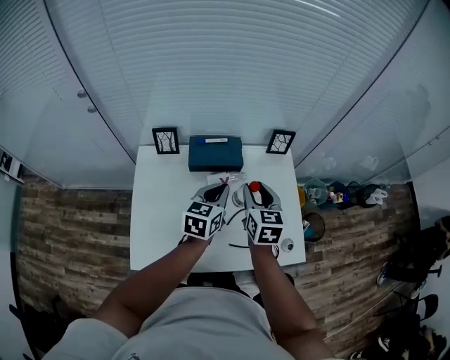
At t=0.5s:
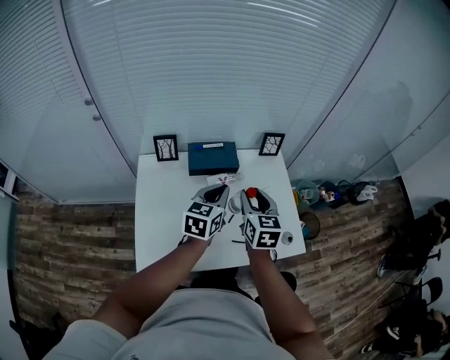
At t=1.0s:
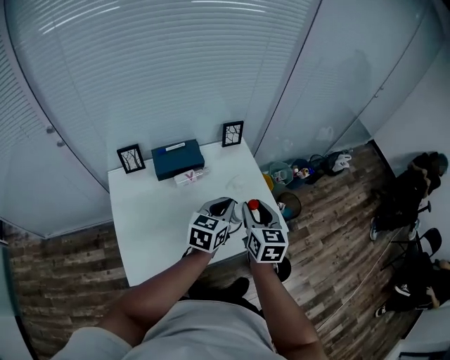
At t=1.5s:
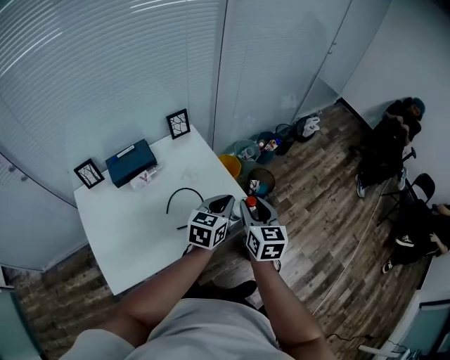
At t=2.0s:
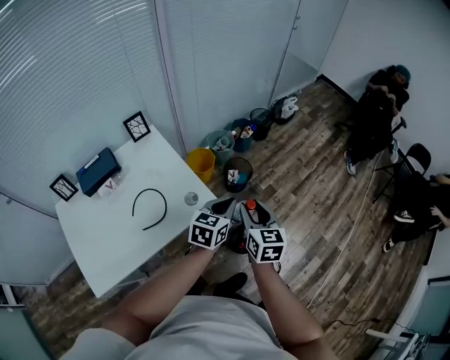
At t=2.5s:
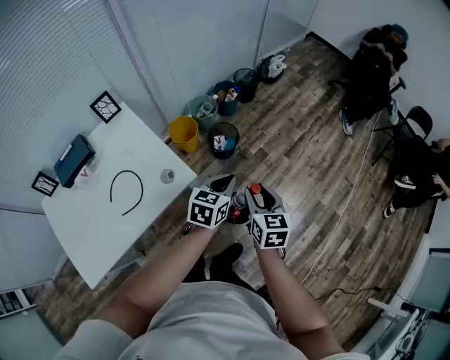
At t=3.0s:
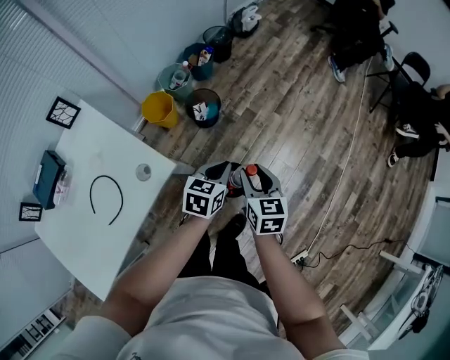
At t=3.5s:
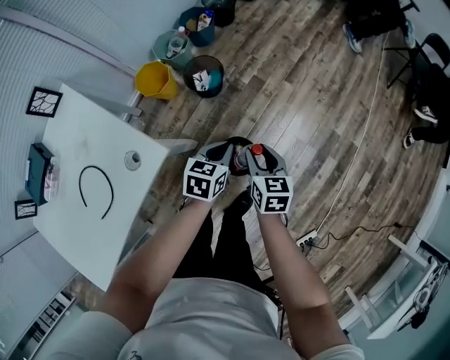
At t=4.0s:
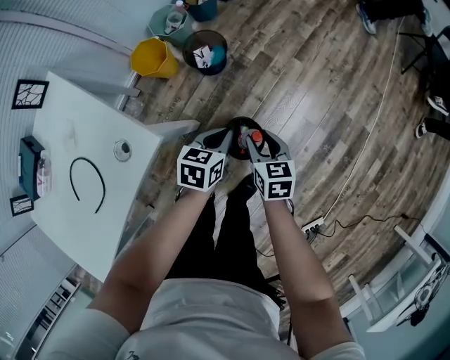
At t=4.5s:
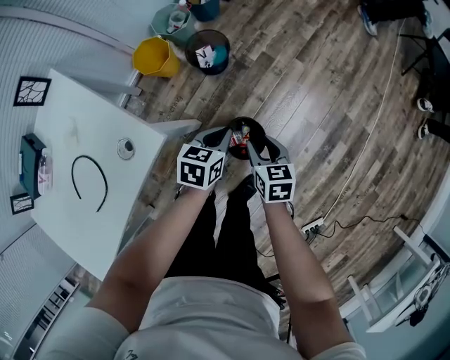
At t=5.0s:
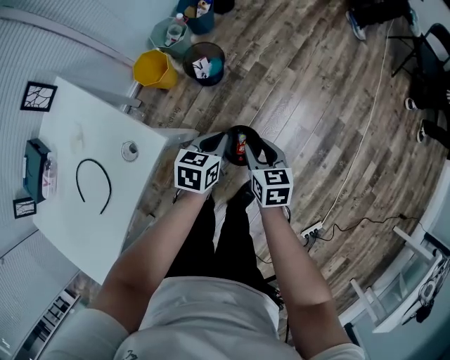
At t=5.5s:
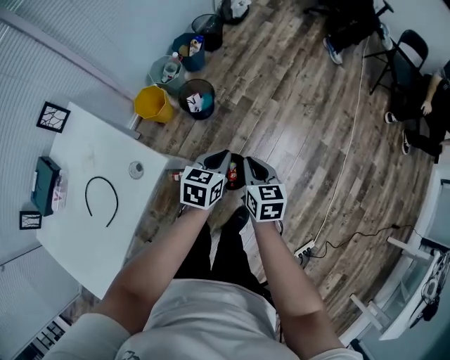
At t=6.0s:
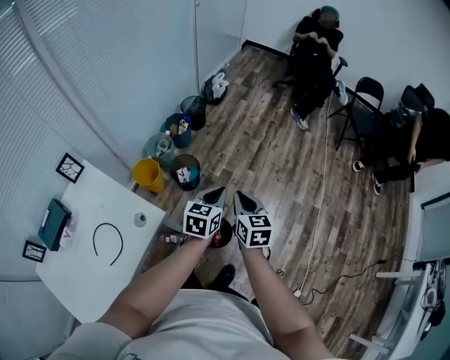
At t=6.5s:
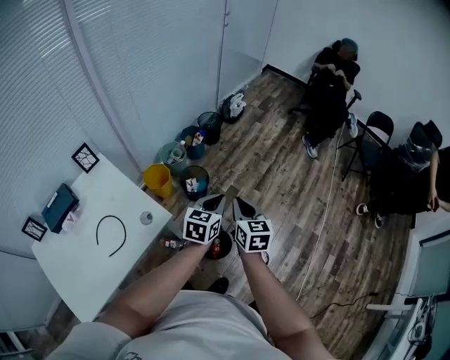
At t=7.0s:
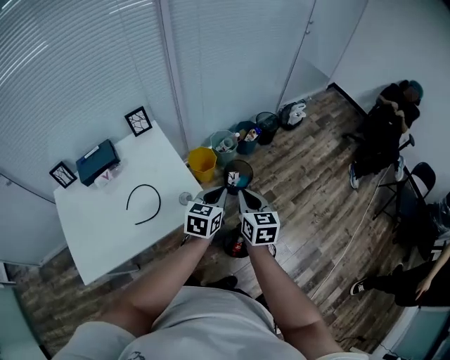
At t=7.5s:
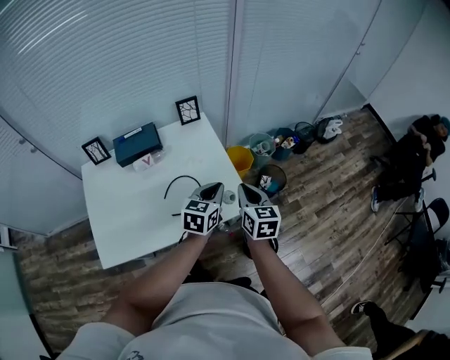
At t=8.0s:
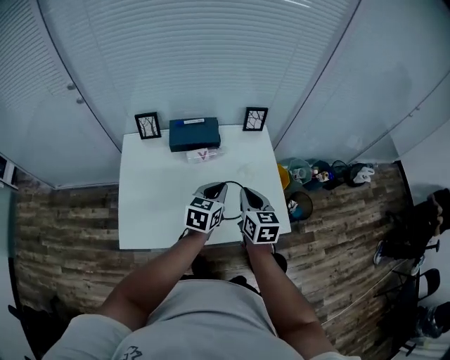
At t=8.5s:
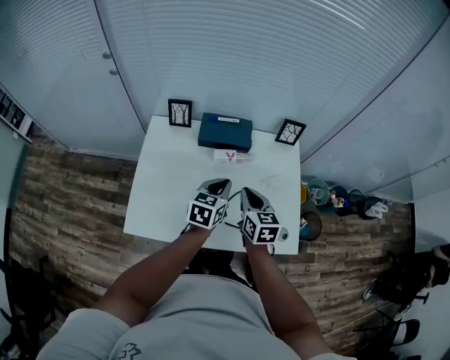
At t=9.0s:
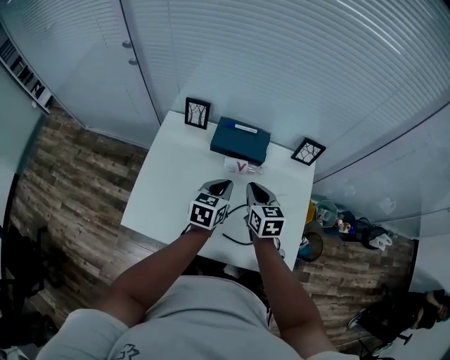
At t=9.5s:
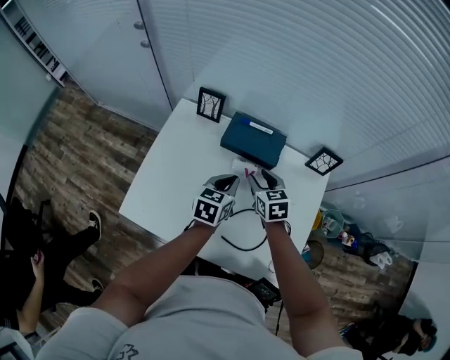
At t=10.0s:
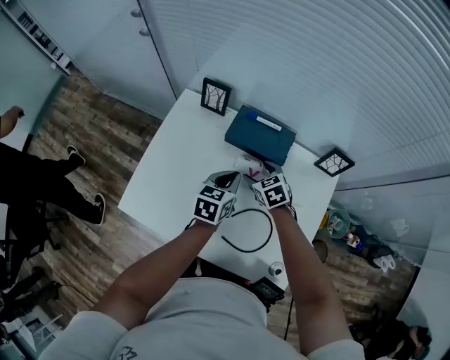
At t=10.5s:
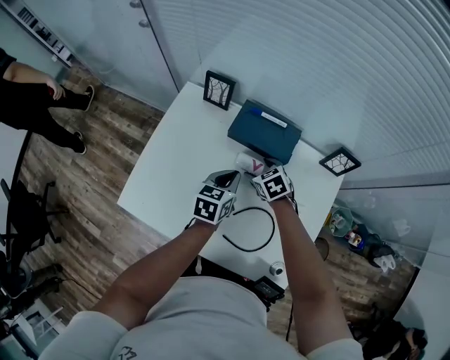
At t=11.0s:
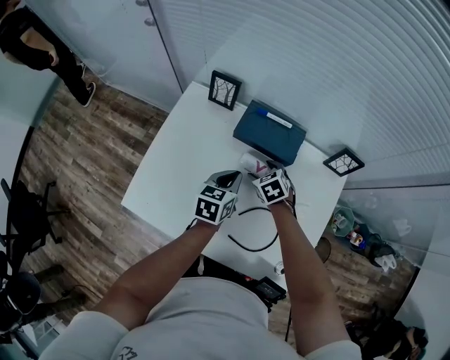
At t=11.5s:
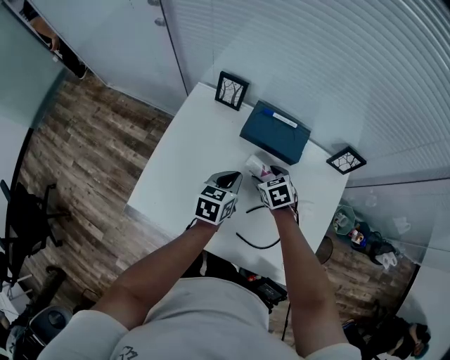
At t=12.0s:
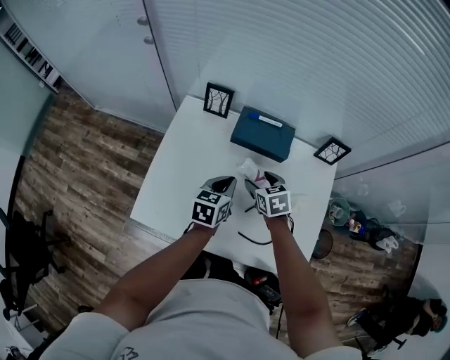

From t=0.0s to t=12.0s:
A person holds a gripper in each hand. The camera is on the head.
From t=0.0s to t=2.0s: Both grippers are carried some 50 cm. The right gripper changes its angle by about 30 degrees, while the left gripper turns by roughly 40 degrees.
From t=2.0s to t=4.0s: Both grippers travel together downward, some 35 cm. The left gripper swivels roughly 30 degrees. Meanwhile the right gripper swivels some 20 degrees.
From t=4.0s to t=6.0s: The two grippers go some 30 cm upward. The left gripper swivels roughly 20 degrees, while the right gripper turns by roughly 20 degrees, and closes up.
From t=6.0s to t=8.0s: The two grippers travel together, approximately 60 cm. The right gripper turns by roughly 50 degrees; the left gripper swivels about 50 degrees.
From t=8.0s to t=10.0s: The right gripper shifts by roughly 30 cm, changes its angle by some 60 degrees, and opens up; the left gripper changes place by approximately 20 cm, and swivels approximately 30 degrees.
From t=10.0s to t=12.0s: The right gripper is displaced backward by about 5 cm. The left gripper travels to the left by about 5 cm.

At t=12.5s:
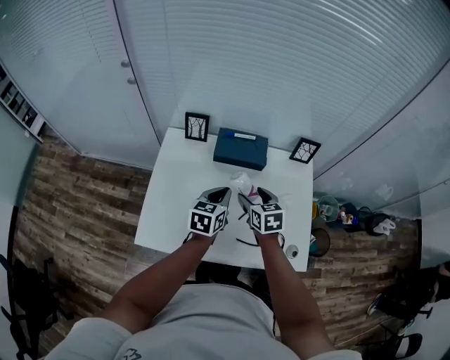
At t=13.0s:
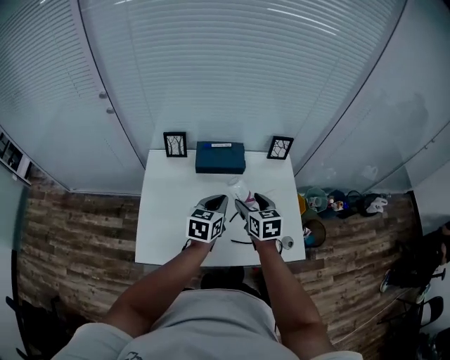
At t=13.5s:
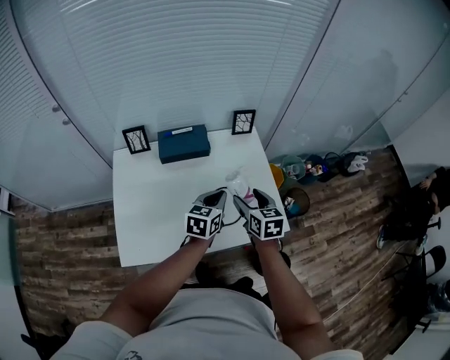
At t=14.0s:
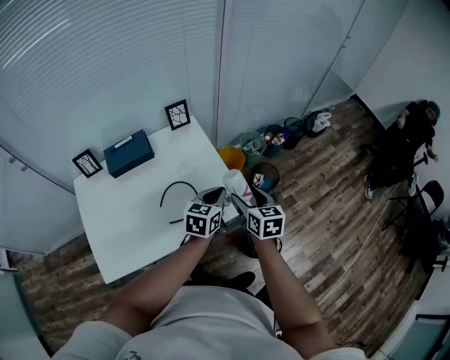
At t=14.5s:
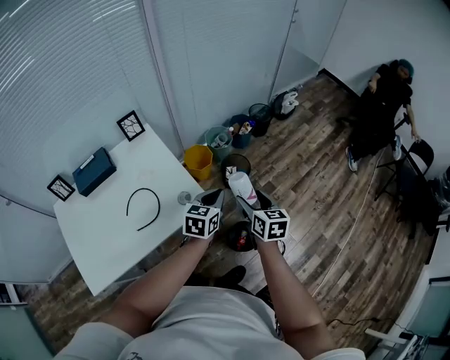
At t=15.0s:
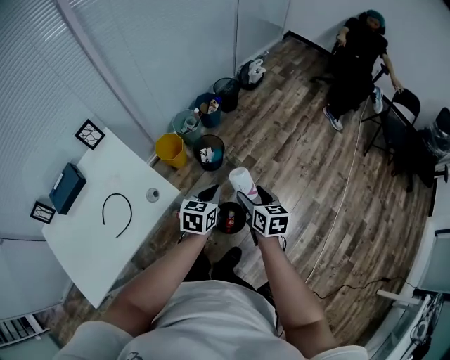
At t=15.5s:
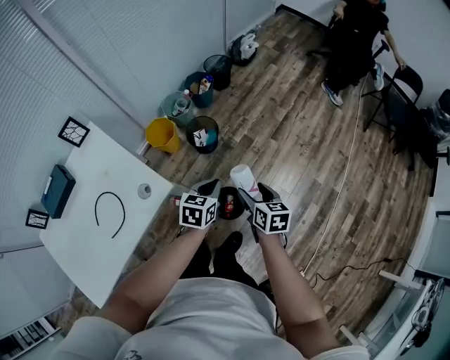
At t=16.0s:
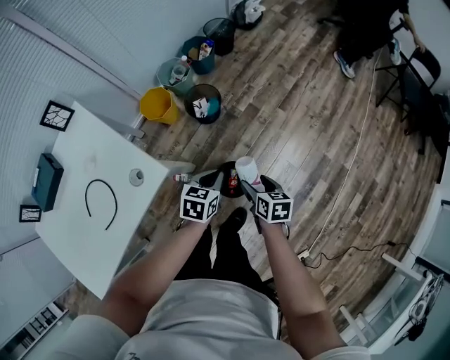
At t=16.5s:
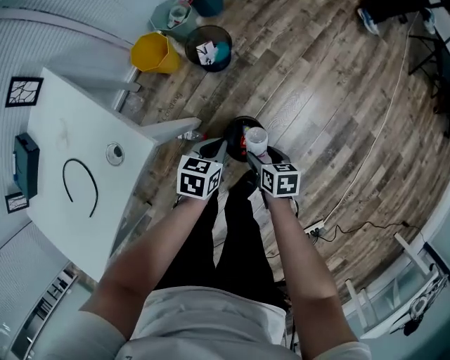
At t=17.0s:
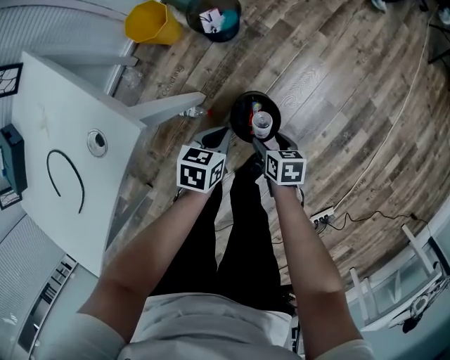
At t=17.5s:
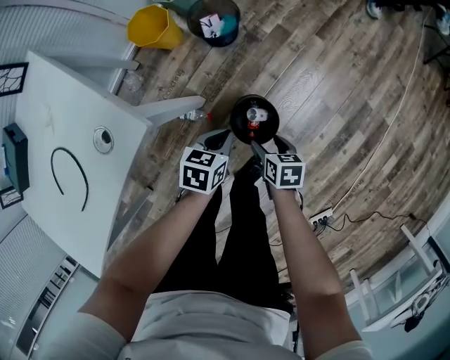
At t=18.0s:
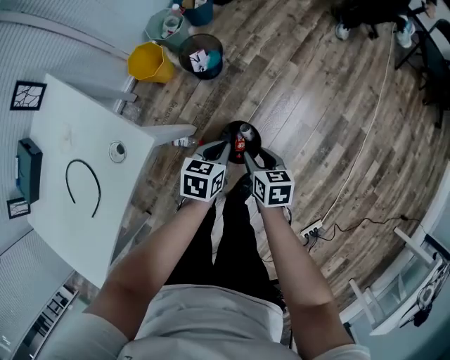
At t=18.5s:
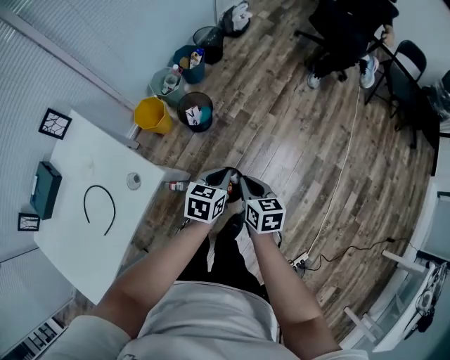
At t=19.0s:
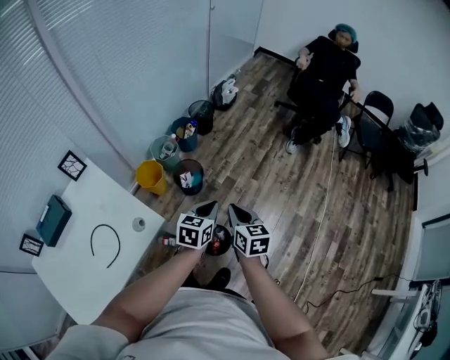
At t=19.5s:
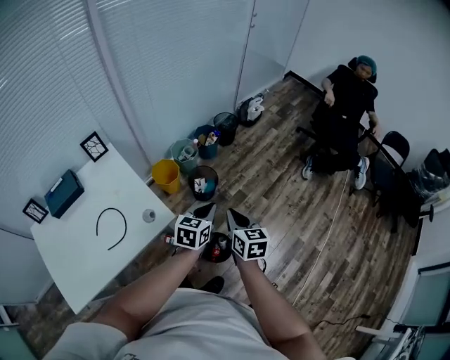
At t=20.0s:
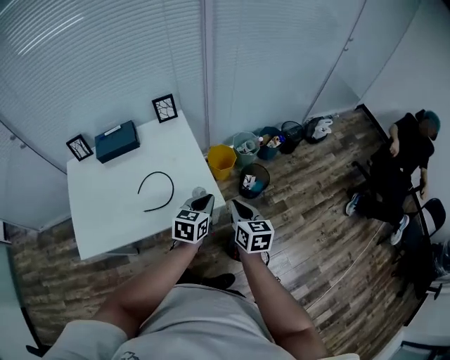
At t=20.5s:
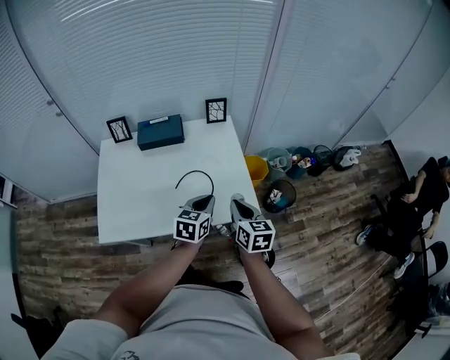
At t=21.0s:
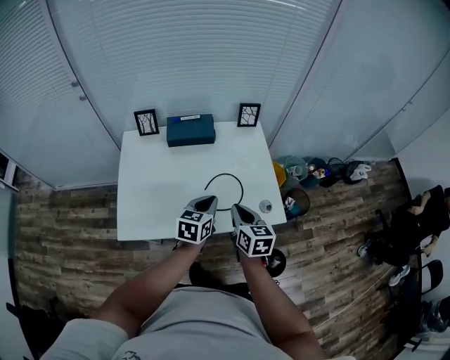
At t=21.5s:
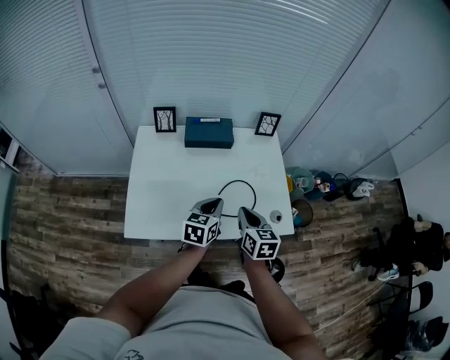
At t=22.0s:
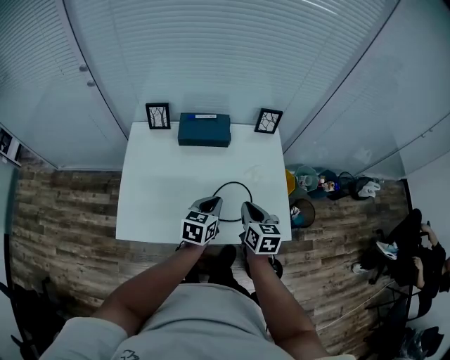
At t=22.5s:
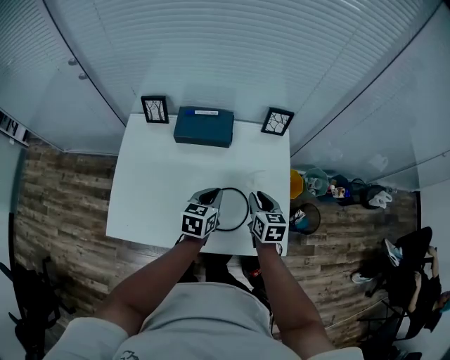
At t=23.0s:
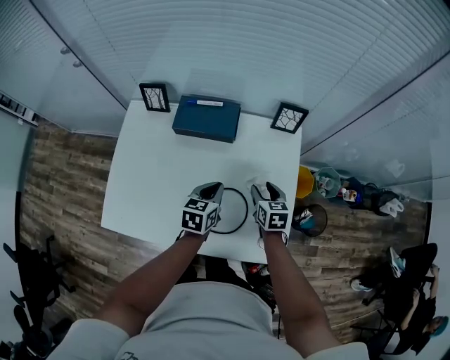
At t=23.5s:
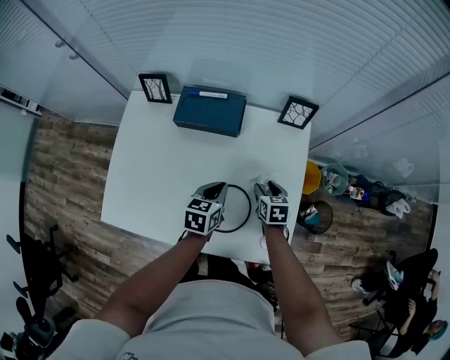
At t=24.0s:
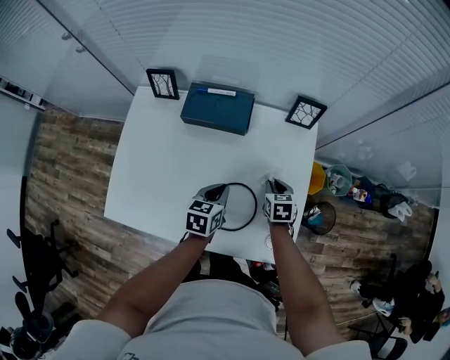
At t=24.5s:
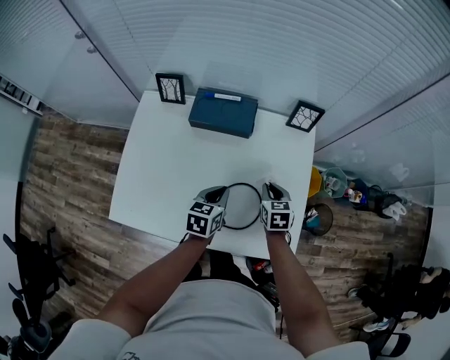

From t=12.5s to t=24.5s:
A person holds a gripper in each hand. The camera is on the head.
From t=12.5s to t=14.5s: Both grippers are carried some 60 cm. The right gripper changes its angle by approximately 50 degrees. The left gripper swivels roughly 50 degrees.
From t=14.5s to t=16.5s: The grippers both shift downward by some 35 cm. The left gripper turns by approximately 30 degrees. Meanwhile the right gripper swivels approximately 30 degrees.
From t=16.5s to t=18.5s: The left gripper shifts roughly 20 cm upward and to the right; the right gripper travels upward by roughly 25 cm, turns by some 20 degrees, and closes up.
From t=18.5s to t=20.5s: The left gripper ends up approximately 40 cm from where it was, and turns by approximately 50 degrees, while the right gripper changes place by approximately 40 cm, and rotates approximately 50 degrees.
From t=20.5s to t=22.5s: The right gripper shifts roughly 25 cm forward, downward and to the left. Meanwhile the left gripper is displaced forward, to the left and downward by approximately 20 cm.
From t=22.5s to t=24.5s: Both grippers travel together downward, roughly 5 cm. The right gripper opens, then closes again.

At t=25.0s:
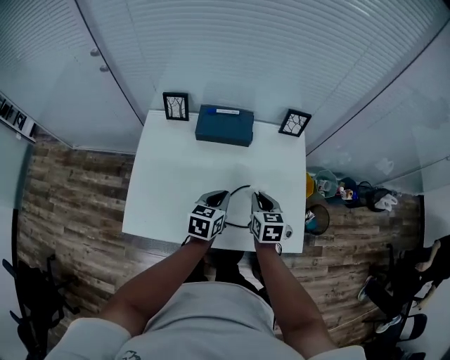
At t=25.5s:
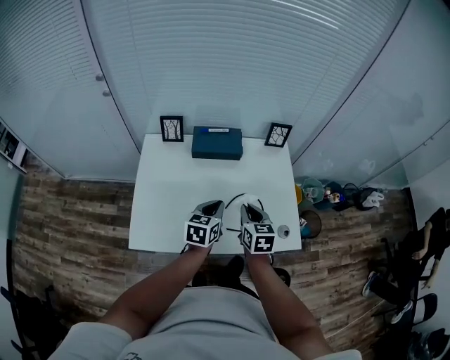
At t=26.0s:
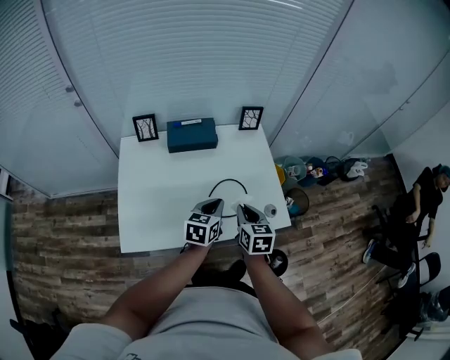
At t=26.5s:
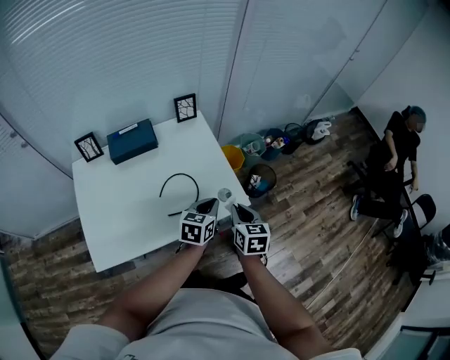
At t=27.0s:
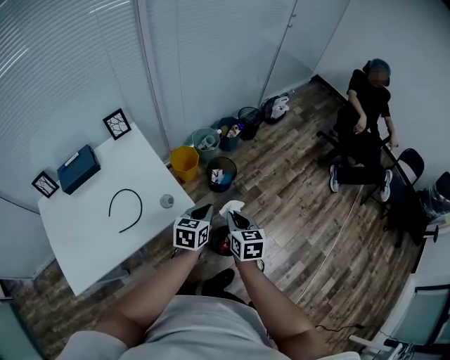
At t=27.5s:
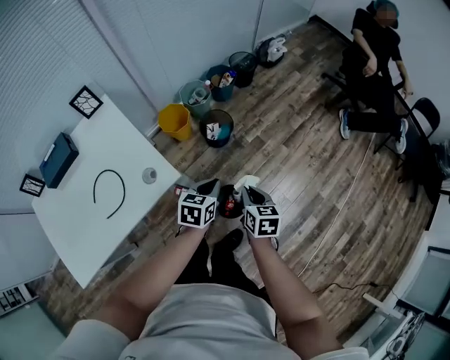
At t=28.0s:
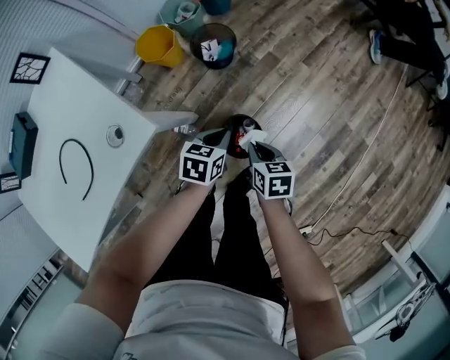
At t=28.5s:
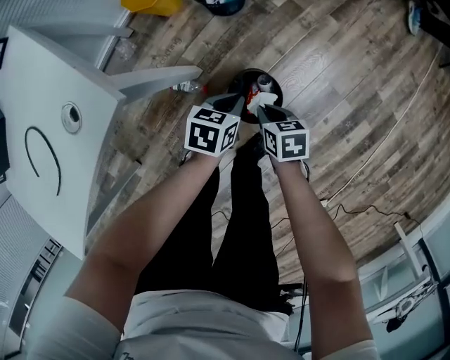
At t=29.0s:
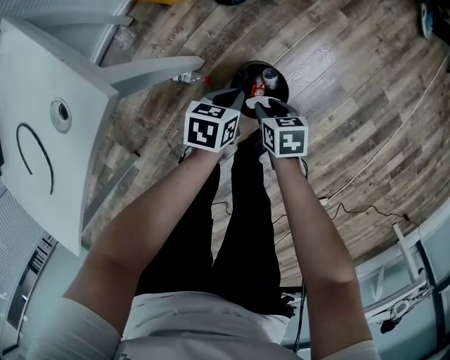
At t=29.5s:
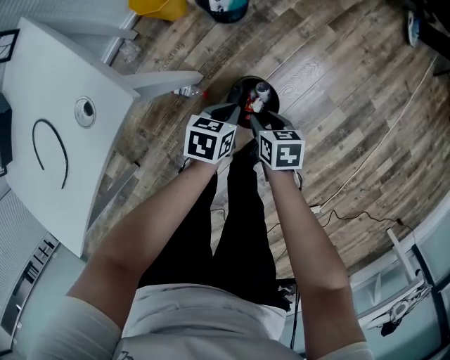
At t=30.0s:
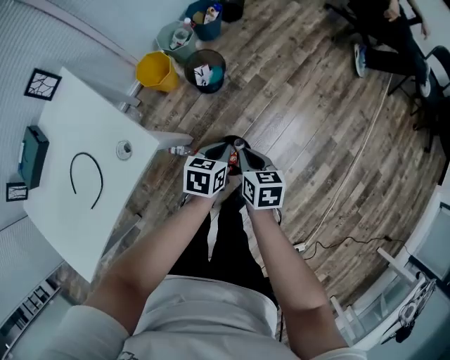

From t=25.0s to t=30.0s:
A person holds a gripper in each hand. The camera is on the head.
From t=25.0s to t=27.5s: The two grippers travel together, about 60 cm. The left gripper swivels some 50 degrees. Meanwhile the right gripper changes its angle by roughly 50 degrees.
From t=27.5s to t=30.0s: The right gripper moves some 40 cm downward and comes back, and opens, then closes once more; the left gripper shifts about 5 cm to the right, and moves roughly 35 cm downward and comes back.
